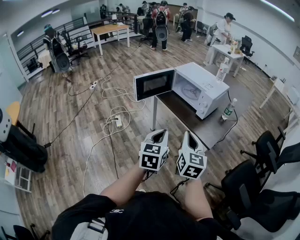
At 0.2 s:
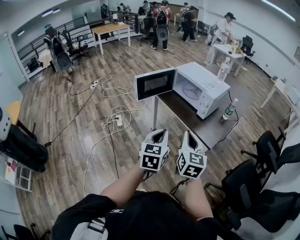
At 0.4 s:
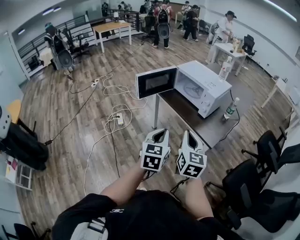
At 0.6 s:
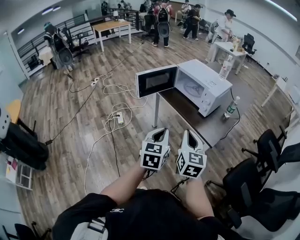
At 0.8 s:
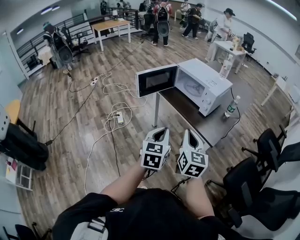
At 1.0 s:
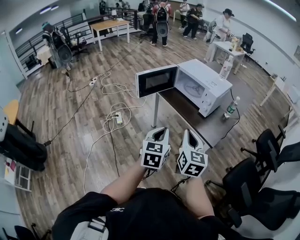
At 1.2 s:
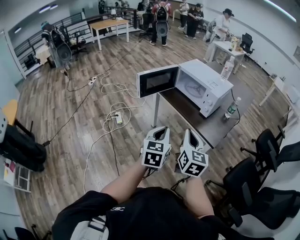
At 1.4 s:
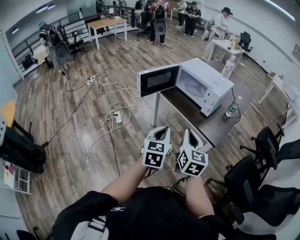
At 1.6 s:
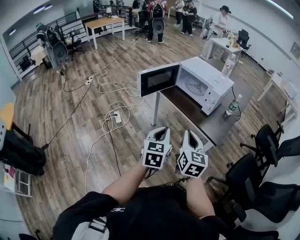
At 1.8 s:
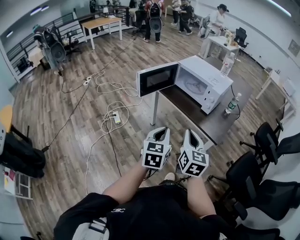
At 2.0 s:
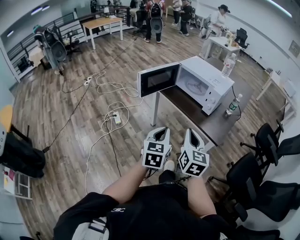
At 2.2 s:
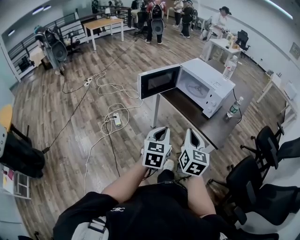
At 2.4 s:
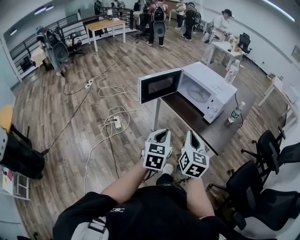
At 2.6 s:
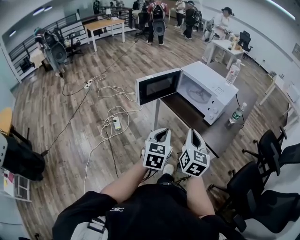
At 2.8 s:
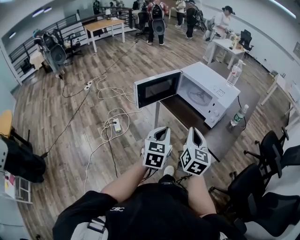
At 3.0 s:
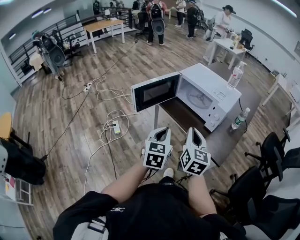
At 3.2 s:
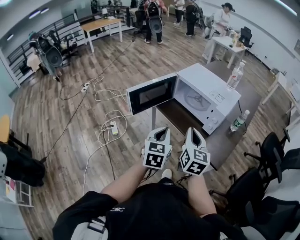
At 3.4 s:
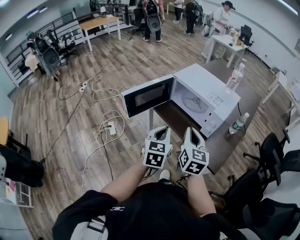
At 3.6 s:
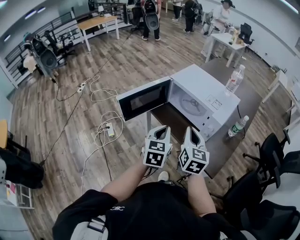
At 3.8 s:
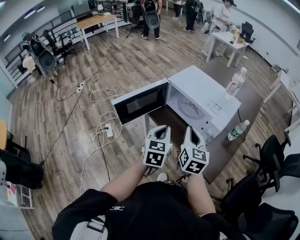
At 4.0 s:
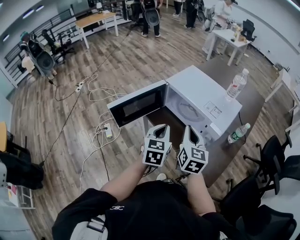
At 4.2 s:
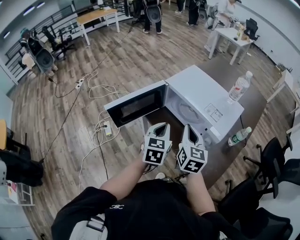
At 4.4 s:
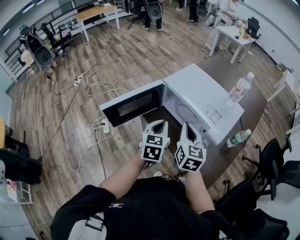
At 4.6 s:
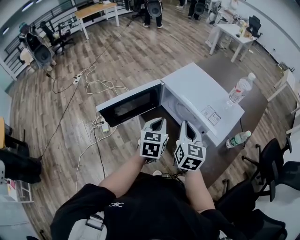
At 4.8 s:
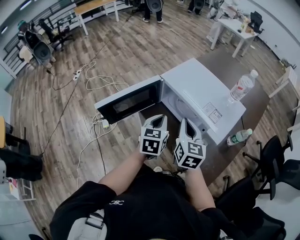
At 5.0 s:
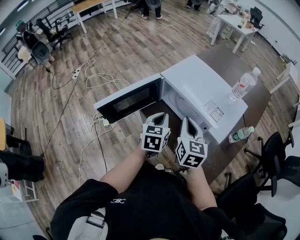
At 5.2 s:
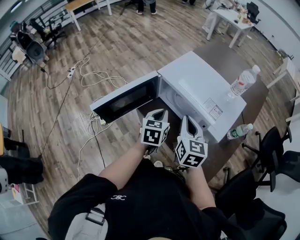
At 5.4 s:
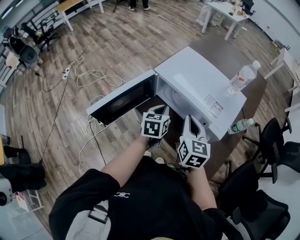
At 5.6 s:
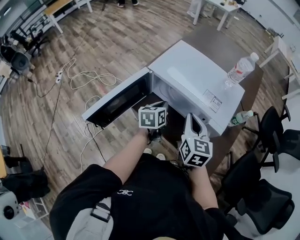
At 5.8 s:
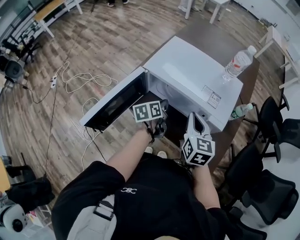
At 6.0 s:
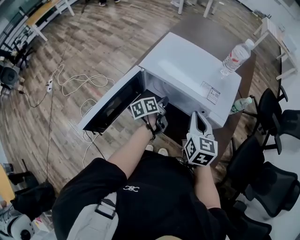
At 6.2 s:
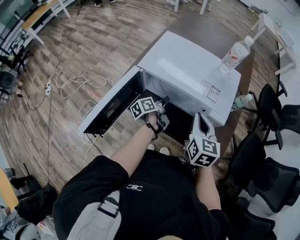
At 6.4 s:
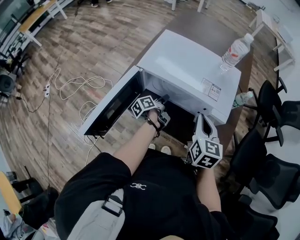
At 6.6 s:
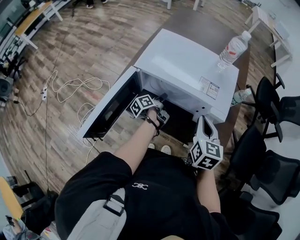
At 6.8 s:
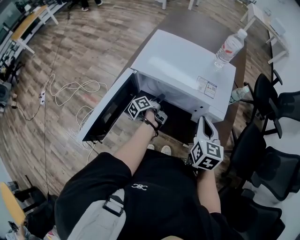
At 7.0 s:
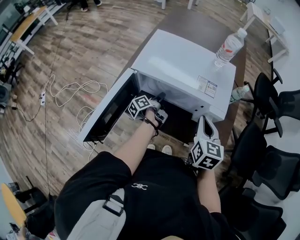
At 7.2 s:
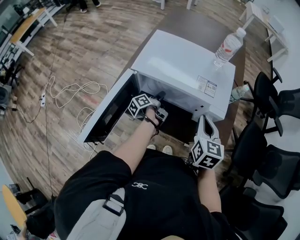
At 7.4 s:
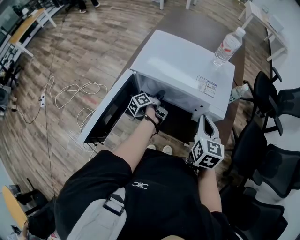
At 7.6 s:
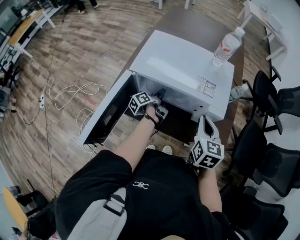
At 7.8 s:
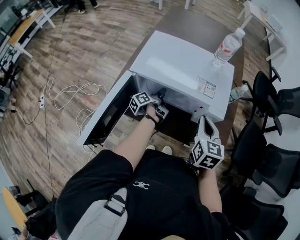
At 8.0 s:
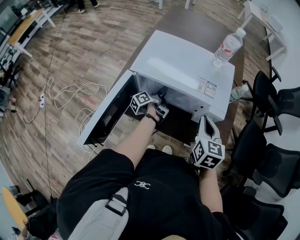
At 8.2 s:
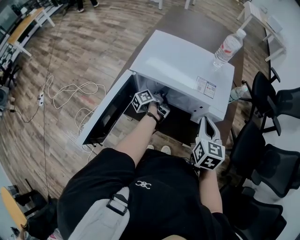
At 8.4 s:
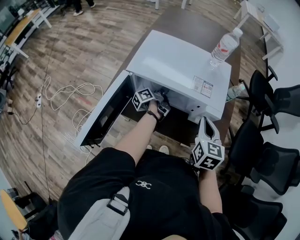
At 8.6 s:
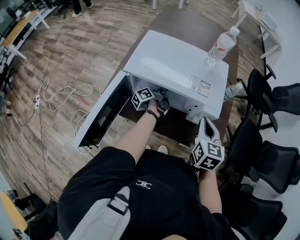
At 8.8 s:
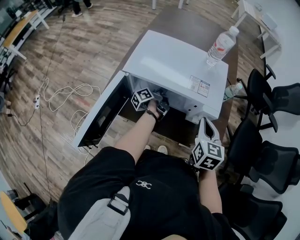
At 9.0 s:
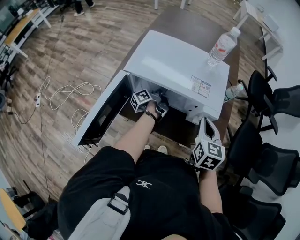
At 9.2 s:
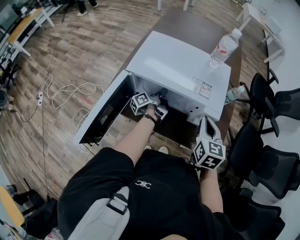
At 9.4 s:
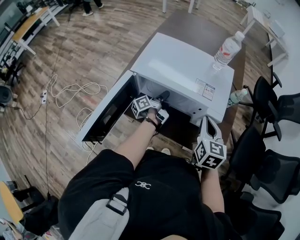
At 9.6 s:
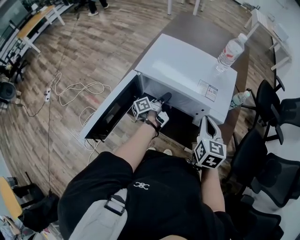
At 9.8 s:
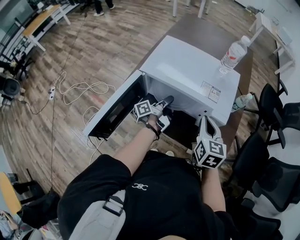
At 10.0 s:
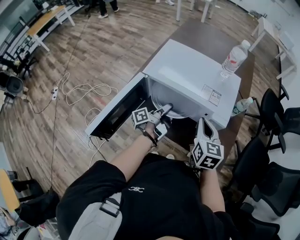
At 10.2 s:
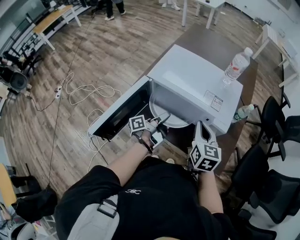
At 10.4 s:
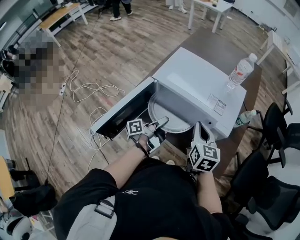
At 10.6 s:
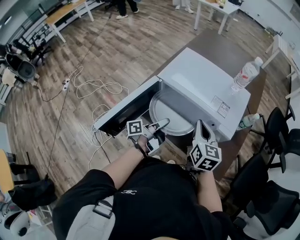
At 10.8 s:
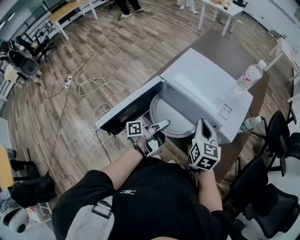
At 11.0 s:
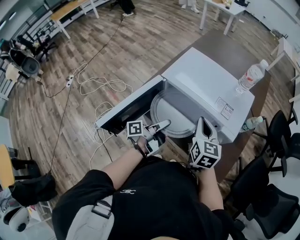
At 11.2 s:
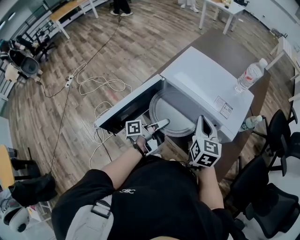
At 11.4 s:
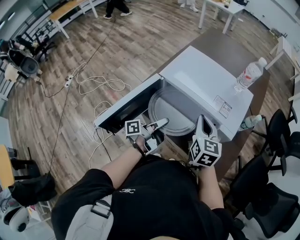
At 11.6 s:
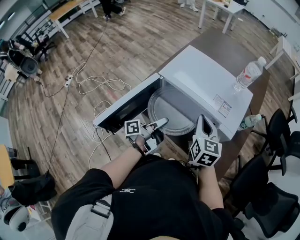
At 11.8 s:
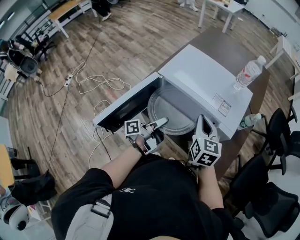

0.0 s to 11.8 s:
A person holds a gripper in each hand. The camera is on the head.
0.0 to 1.4 s: Both grippers travel together to the left, about 5 cm.
1.4 to 3.0 s: The grippers both shift forward by approximately 20 cm.
3.0 to 4.4 s: The two grippers go approximately 25 cm forward.
4.4 to 6.0 s: The right gripper moves about 10 cm. Meanwhile the left gripper shifts about 15 cm downward, and rolls counterclockwise, seen from behind, by some 50 degrees.
6.0 to 7.4 s: The right gripper moves approximately 5 cm, while the left gripper changes place by roughly 5 cm, and swivels some 30 degrees.
7.4 to 8.8 s: The left gripper travels forward by about 5 cm, and closes.
8.8 to 10.4 s: The left gripper heads backward and upward, covering approximately 20 cm. Meanwhile the right gripper heads to the left, covering approximately 10 cm.
10.4 to 11.8 s: The grippers stay close to where they were, moving slightly.

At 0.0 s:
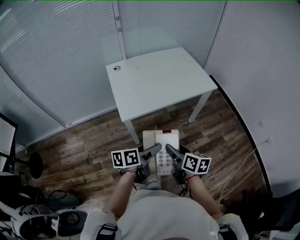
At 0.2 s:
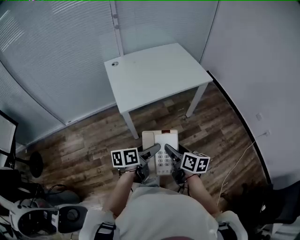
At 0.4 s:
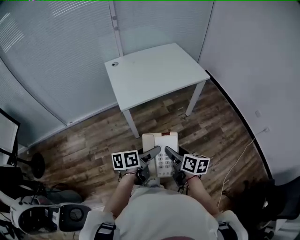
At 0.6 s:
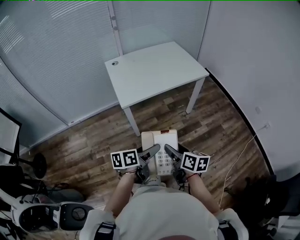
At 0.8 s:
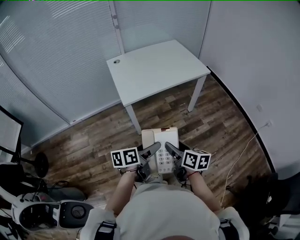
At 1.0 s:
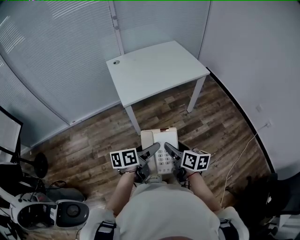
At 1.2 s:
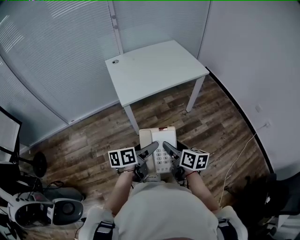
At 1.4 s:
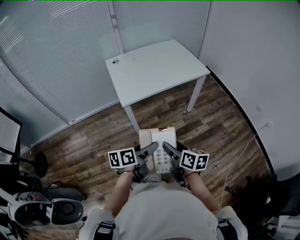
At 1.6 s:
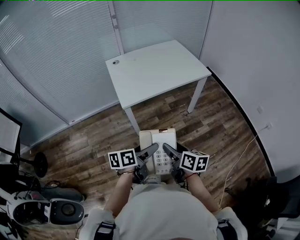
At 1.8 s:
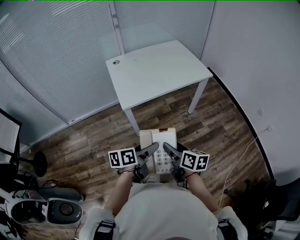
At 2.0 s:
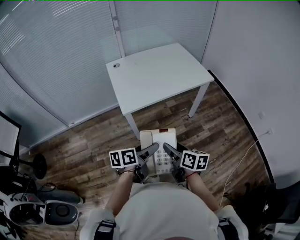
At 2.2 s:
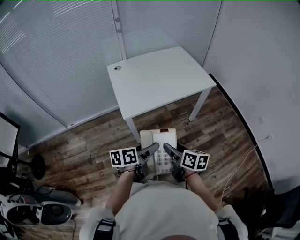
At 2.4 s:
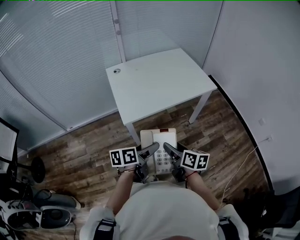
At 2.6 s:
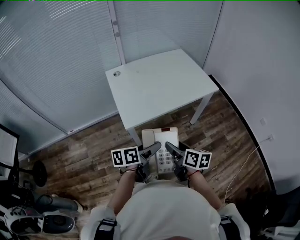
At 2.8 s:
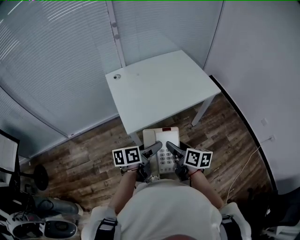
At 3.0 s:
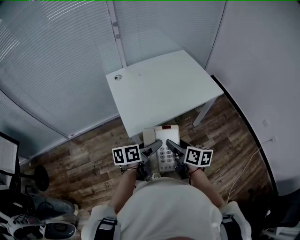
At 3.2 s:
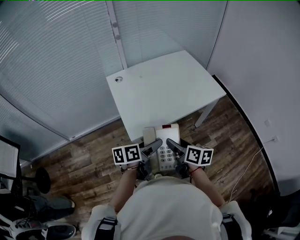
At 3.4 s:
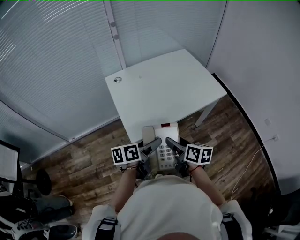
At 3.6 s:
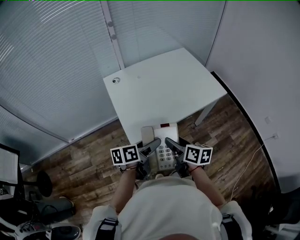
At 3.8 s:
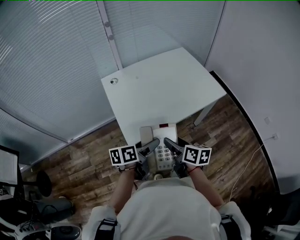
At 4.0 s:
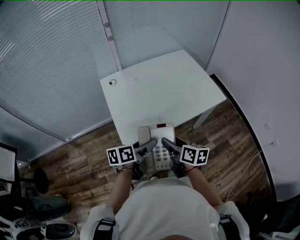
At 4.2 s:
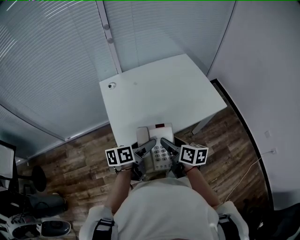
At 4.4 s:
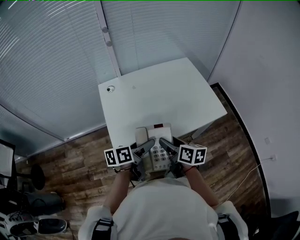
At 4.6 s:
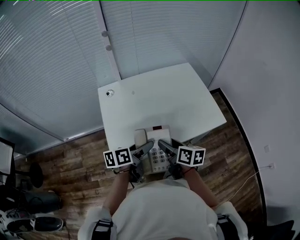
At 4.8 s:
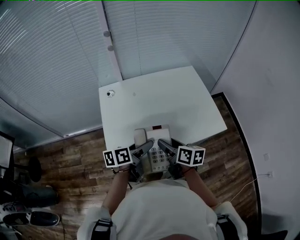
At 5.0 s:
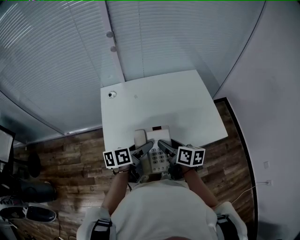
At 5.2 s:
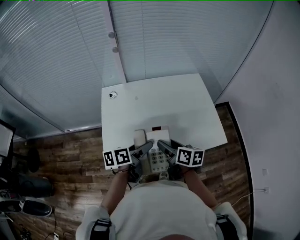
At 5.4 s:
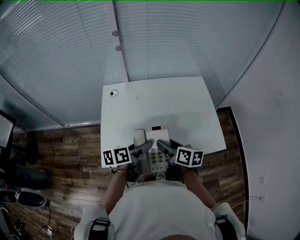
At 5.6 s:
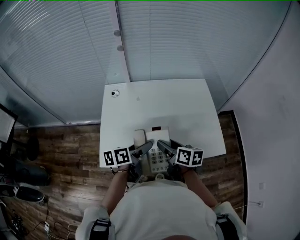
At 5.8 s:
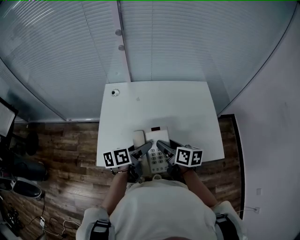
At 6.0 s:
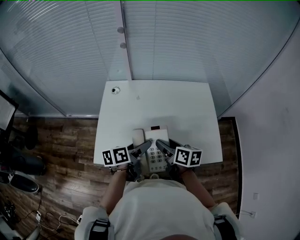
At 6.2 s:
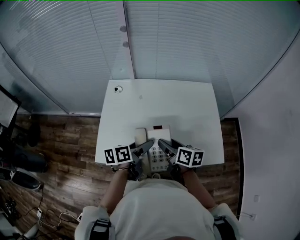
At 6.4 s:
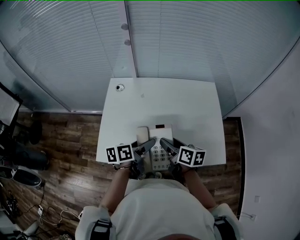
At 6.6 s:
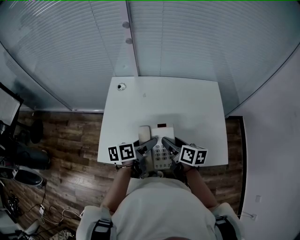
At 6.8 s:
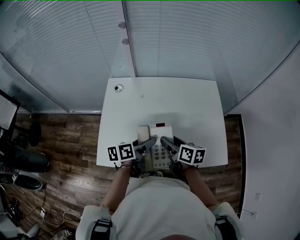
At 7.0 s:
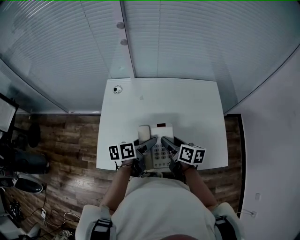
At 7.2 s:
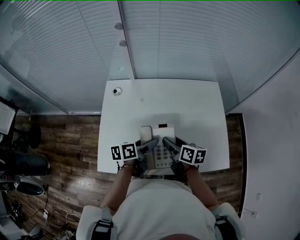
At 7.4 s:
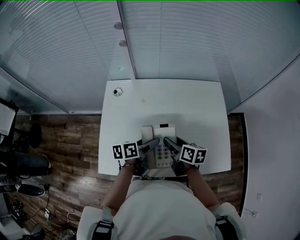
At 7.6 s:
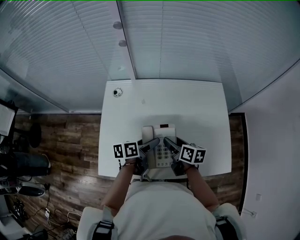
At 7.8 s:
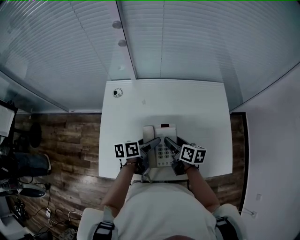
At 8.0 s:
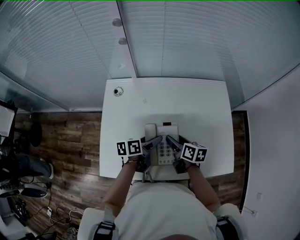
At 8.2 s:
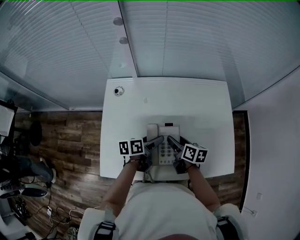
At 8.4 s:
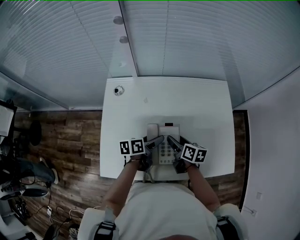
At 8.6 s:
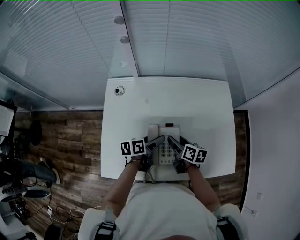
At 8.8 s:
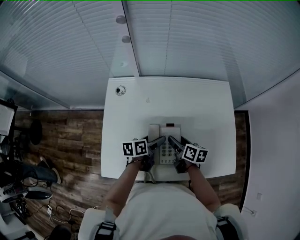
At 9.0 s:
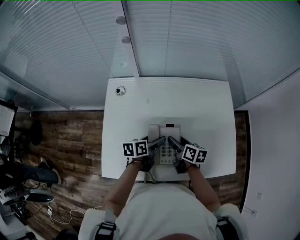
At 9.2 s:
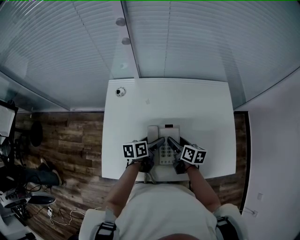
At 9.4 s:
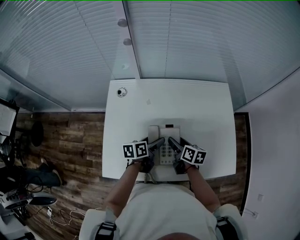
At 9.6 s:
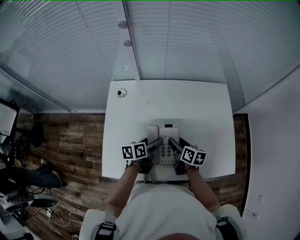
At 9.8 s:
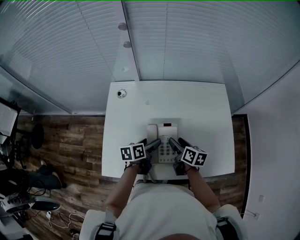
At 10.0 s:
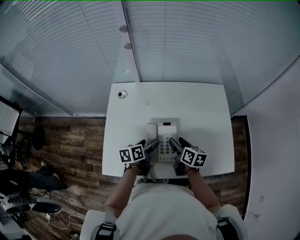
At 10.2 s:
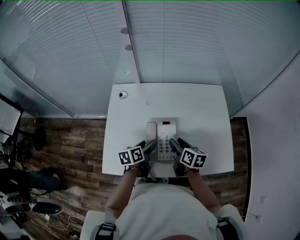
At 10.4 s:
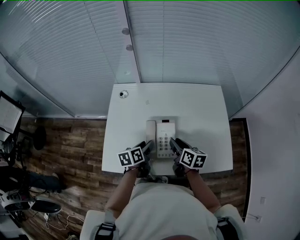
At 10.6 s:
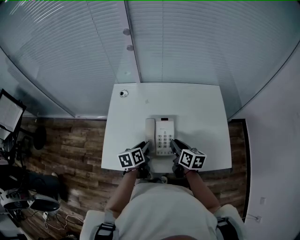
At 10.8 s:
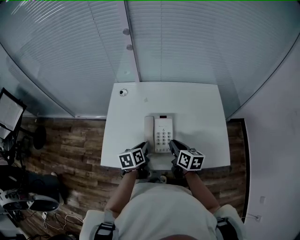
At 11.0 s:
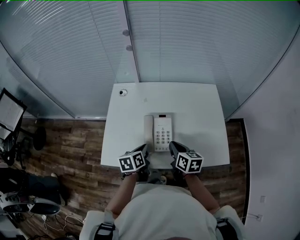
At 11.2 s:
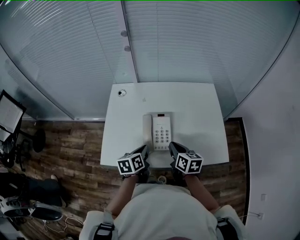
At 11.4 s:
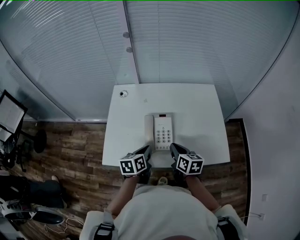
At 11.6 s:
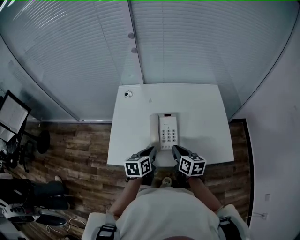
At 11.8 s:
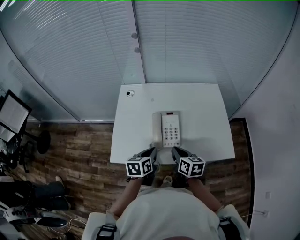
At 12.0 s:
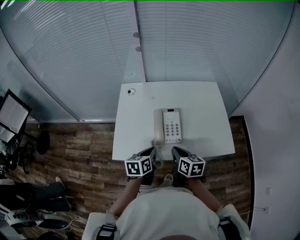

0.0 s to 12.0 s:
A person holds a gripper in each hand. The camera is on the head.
0.0 to 1.6 s: Both grippers move backward, some 10 cm.
1.6 to 3.0 s: Both grippers travel together forward, about 20 cm.
3.0 to 4.4 s: The two grippers go approximately 15 cm forward.
4.4 to 6.0 s: Both grippers travel together forward and to the right, some 15 cm. The left gripper swivels approximately 20 degrees, while the right gripper rotates about 20 degrees.
6.0 to 7.6 s: Both grippers move forward and downward, approximately 15 cm.
7.6 to 9.0 s: The right gripper changes place by some 5 cm; the left gripper shifts by approximately 5 cm.
9.0 to 10.4 s: The right gripper moves upward and backward, roughly 10 cm, and closes. Meanwhile the left gripper shifts some 5 cm backward, and closes.
10.4 to 12.0 s: The right gripper travels backward by roughly 15 cm, and closes its fingers. The left gripper moves backward and upward, some 15 cm, and closes its fingers.
